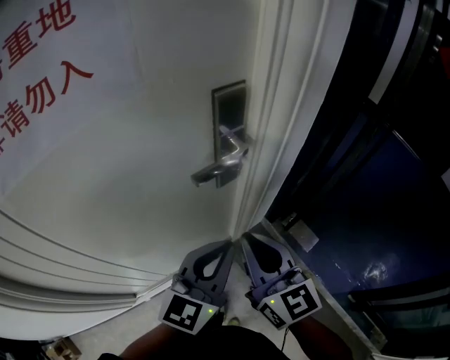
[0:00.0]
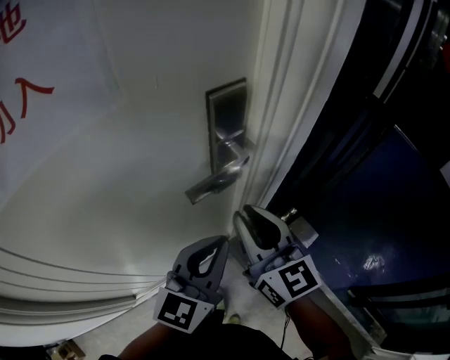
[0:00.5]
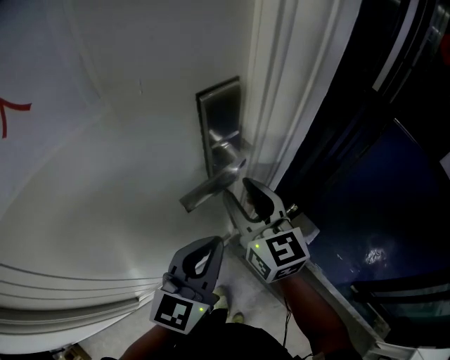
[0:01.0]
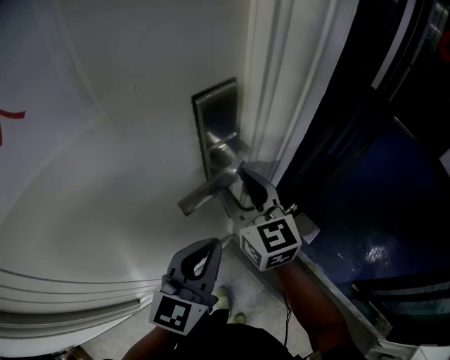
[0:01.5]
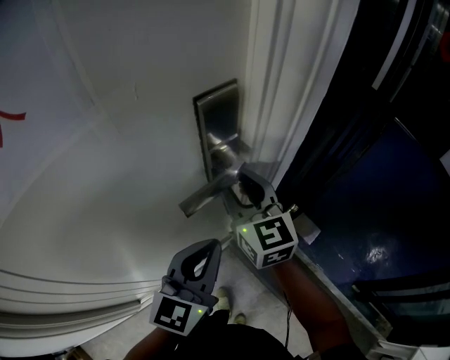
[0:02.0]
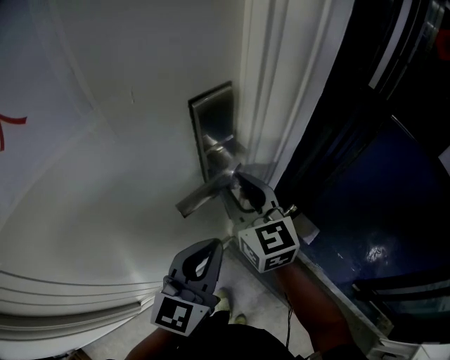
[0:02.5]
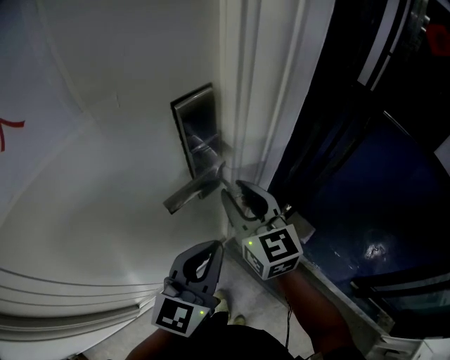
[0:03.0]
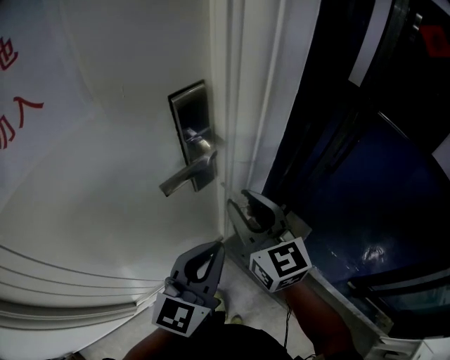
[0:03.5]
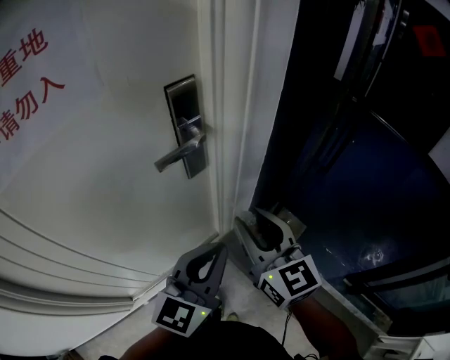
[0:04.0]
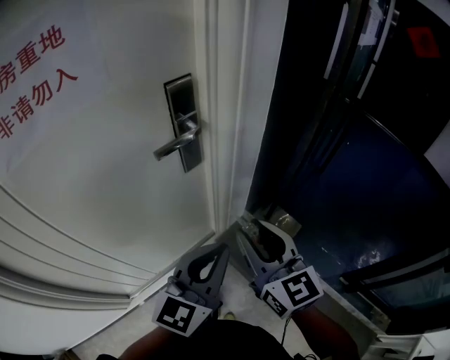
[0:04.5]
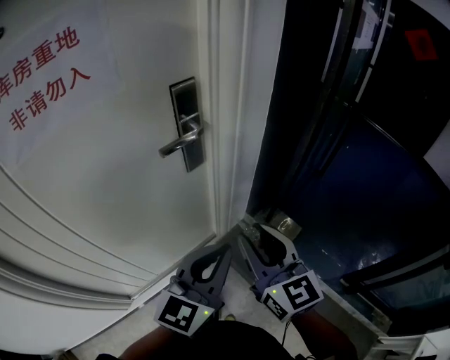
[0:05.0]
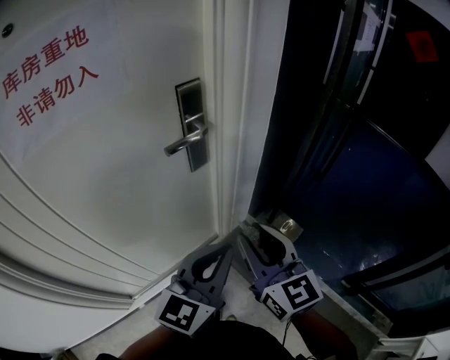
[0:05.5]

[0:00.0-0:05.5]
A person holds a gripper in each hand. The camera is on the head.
0:00.0 to 0:02.0: The left gripper heads forward, covering approximately 5 cm, while the right gripper goes roughly 20 cm forward, and opens.
0:02.0 to 0:03.5: The right gripper shifts about 10 cm backward and to the right; the left gripper shifts by about 5 cm.
0:03.5 to 0:05.5: The right gripper travels backward by about 20 cm, while the left gripper heads backward and to the right, covering roughly 15 cm.

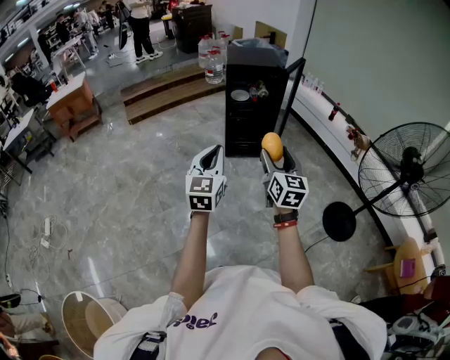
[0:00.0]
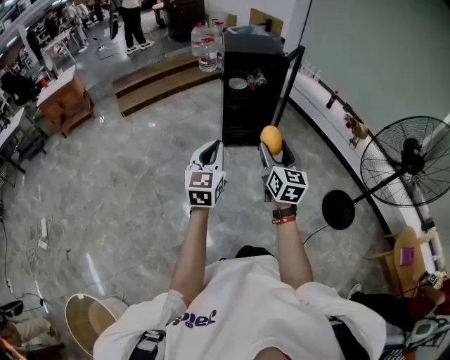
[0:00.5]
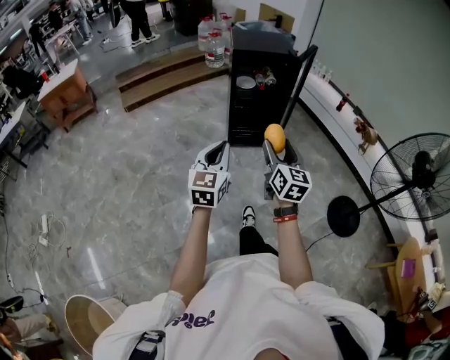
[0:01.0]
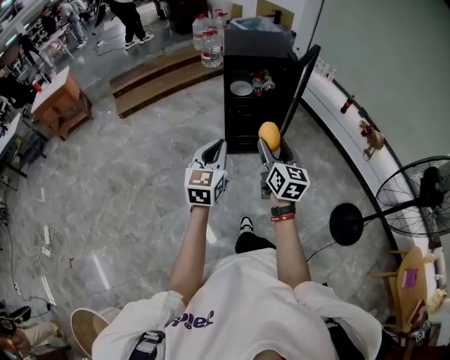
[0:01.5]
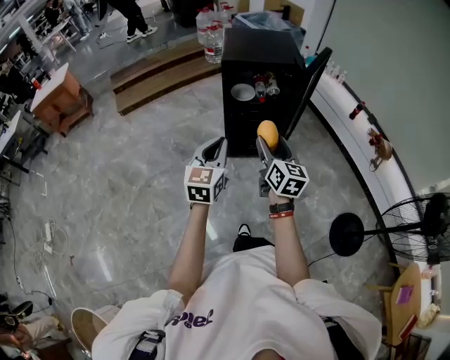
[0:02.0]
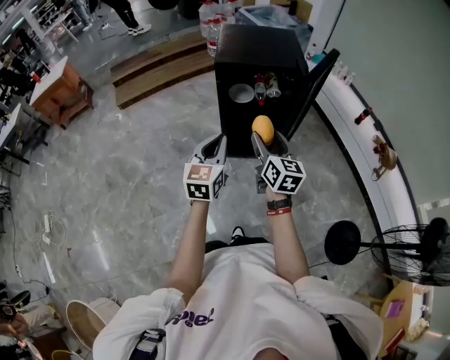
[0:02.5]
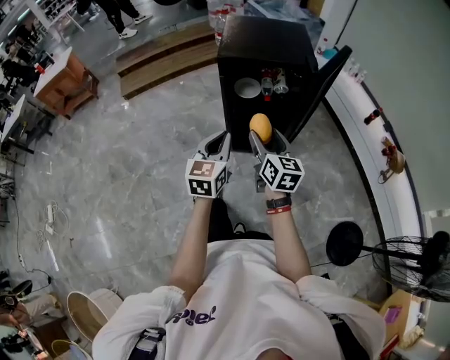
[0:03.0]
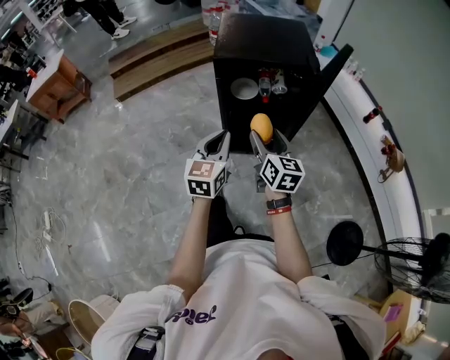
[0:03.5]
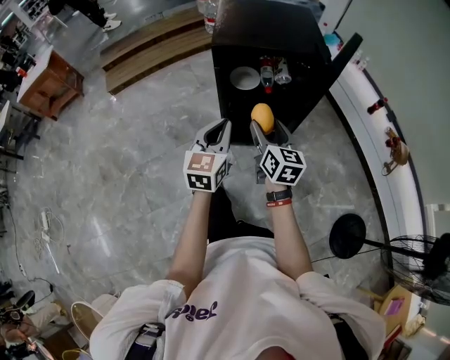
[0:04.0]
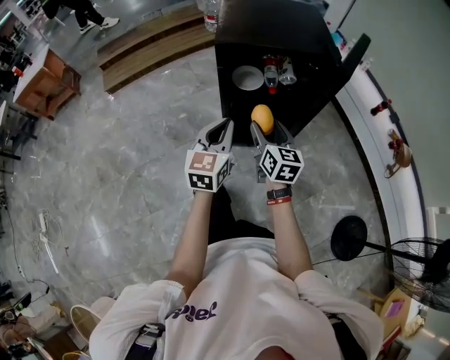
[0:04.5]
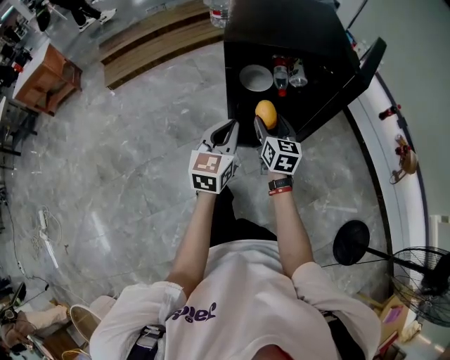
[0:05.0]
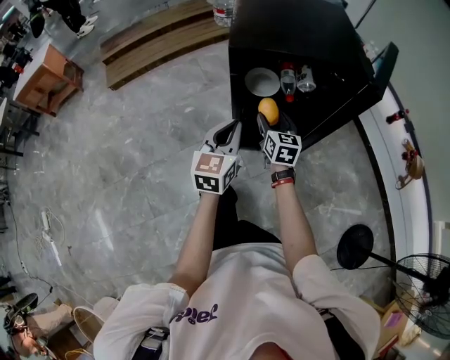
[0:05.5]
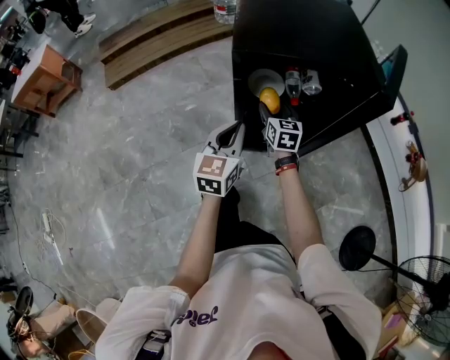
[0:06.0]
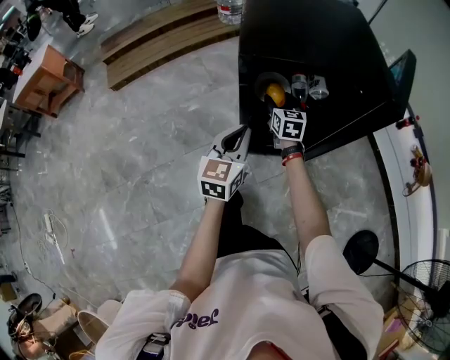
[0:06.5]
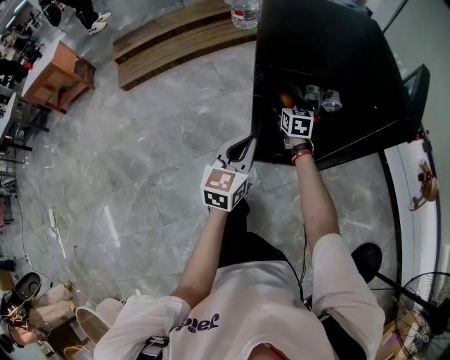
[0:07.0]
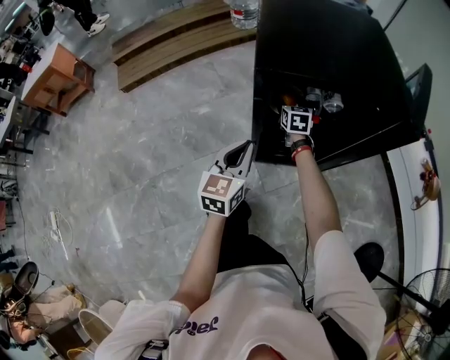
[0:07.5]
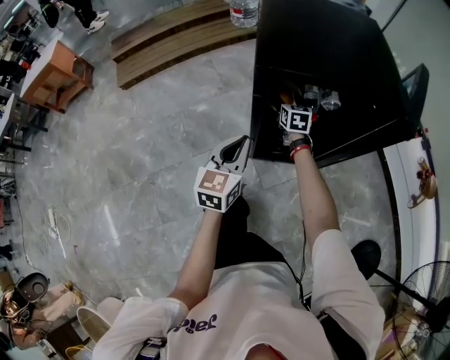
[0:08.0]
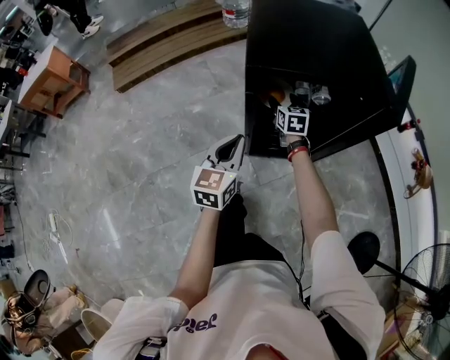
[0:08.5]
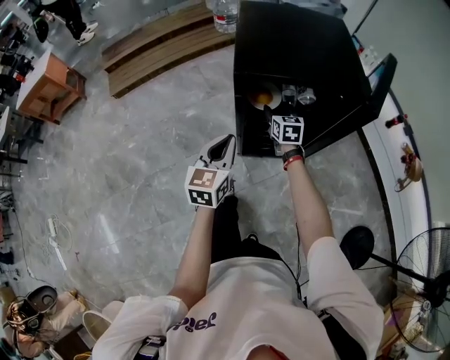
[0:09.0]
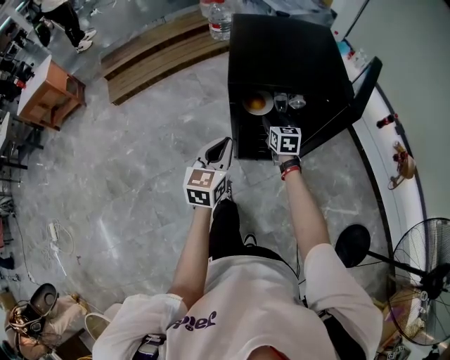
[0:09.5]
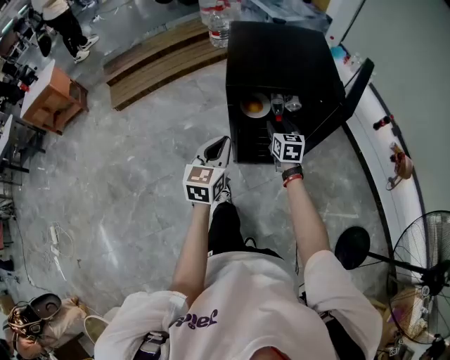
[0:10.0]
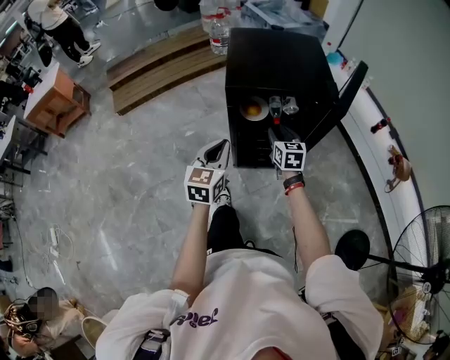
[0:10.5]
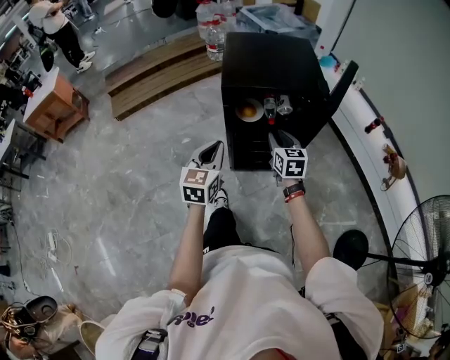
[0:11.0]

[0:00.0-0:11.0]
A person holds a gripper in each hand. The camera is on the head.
0:00.0 to 0:02.0: The pair of grippers is taken forward, some 40 cm.
0:02.0 to 0:03.5: The two grippers go roughly 20 cm forward and downward.
0:03.5 to 0:05.5: Both grippers move forward and downward, approximately 25 cm.
0:05.5 to 0:07.5: The left gripper moves forward and downward, approximately 10 cm, while the right gripper shifts approximately 20 cm forward and downward.
0:07.5 to 0:09.0: The right gripper goes about 15 cm backward and upward; the left gripper moves upward and backward, some 10 cm.
0:09.0 to 0:11.0: The left gripper is displaced upward and backward by roughly 15 cm. Meanwhile the right gripper heads backward and upward, covering roughly 25 cm, and closes up.

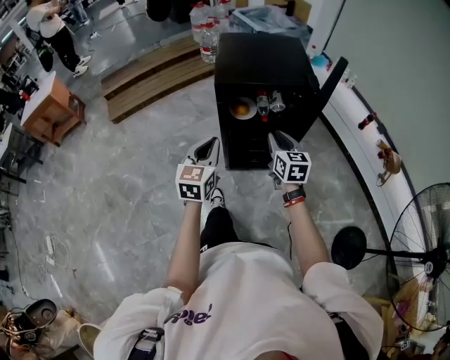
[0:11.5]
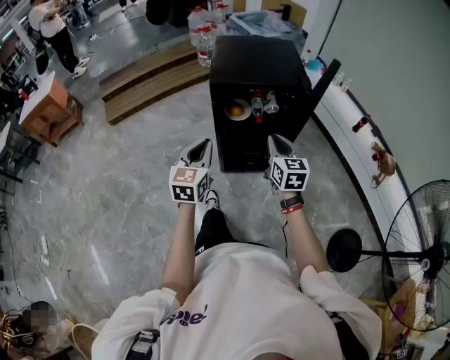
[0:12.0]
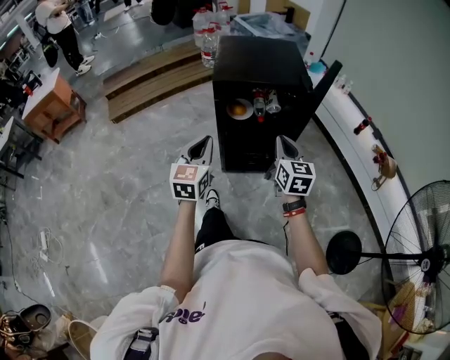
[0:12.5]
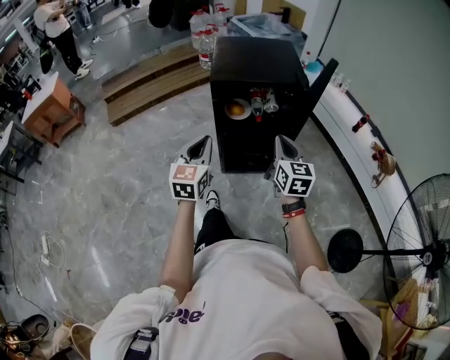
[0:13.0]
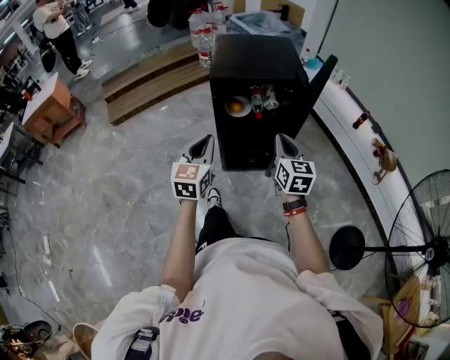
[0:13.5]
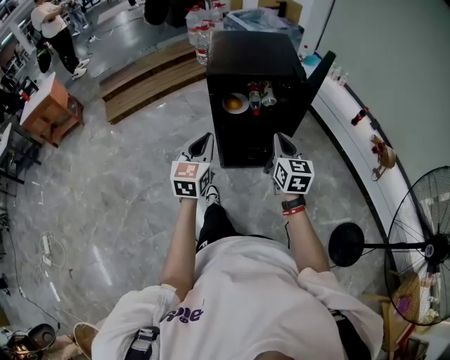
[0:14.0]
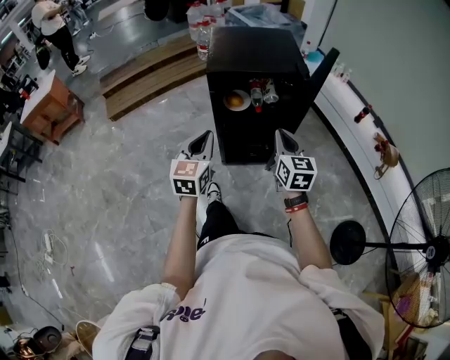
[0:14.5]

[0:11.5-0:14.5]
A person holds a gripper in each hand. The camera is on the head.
0:11.5 to 0:13.0: The left gripper shifts approximately 5 cm backward, while the right gripper travels backward and upward by roughly 10 cm.
0:13.0 to 0:14.5: The grippers move only a little.

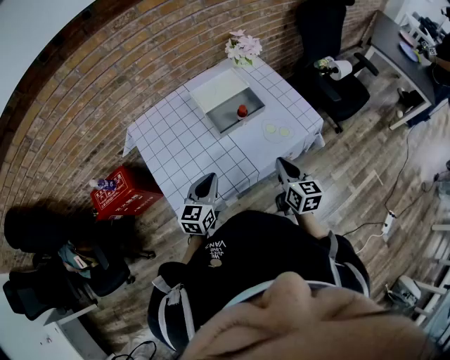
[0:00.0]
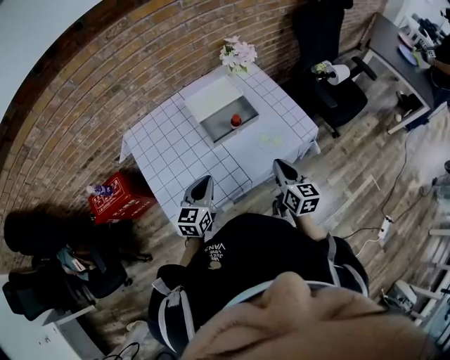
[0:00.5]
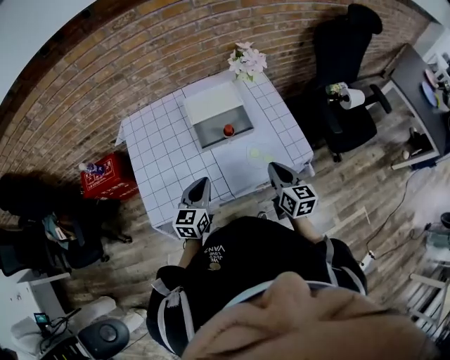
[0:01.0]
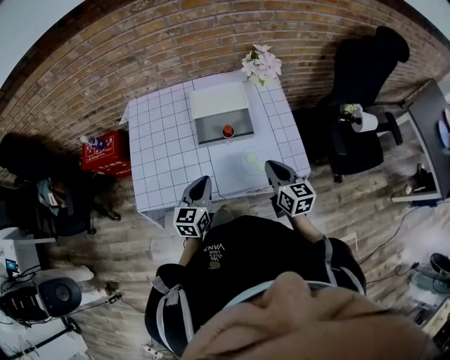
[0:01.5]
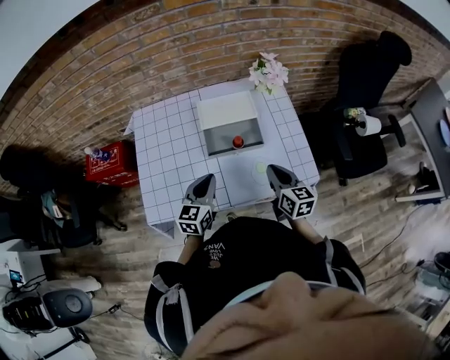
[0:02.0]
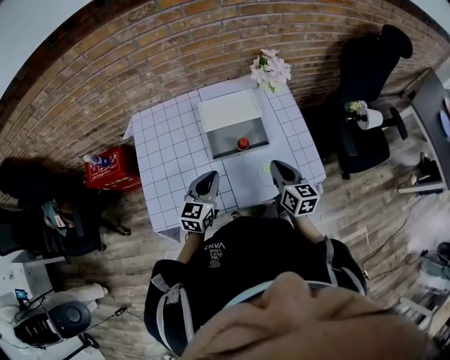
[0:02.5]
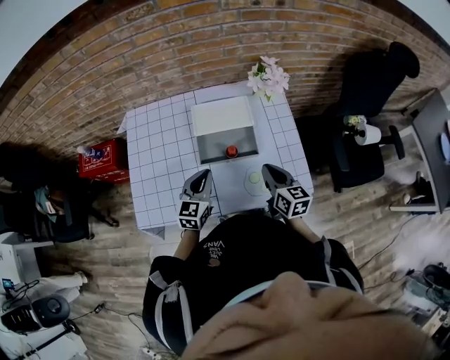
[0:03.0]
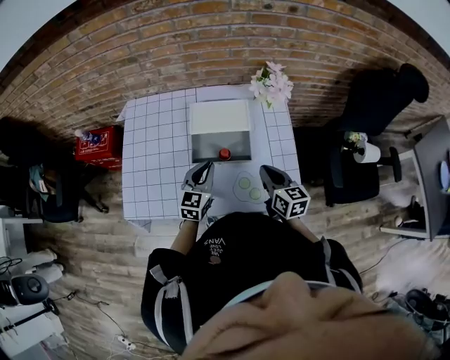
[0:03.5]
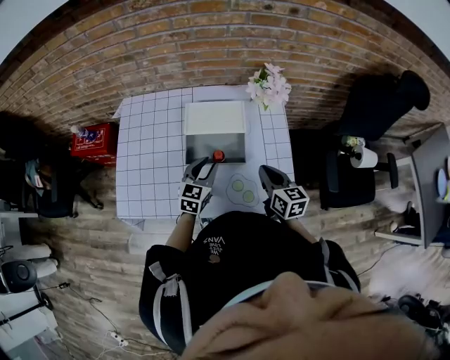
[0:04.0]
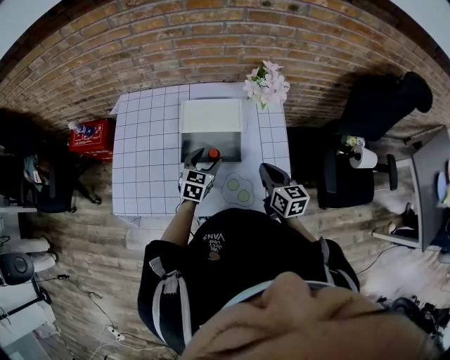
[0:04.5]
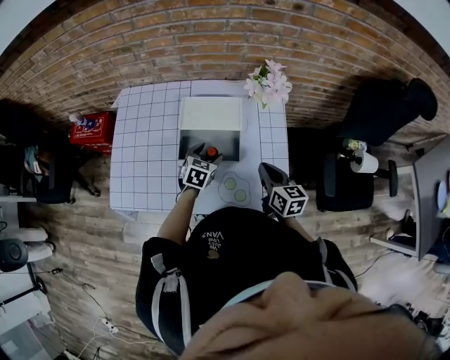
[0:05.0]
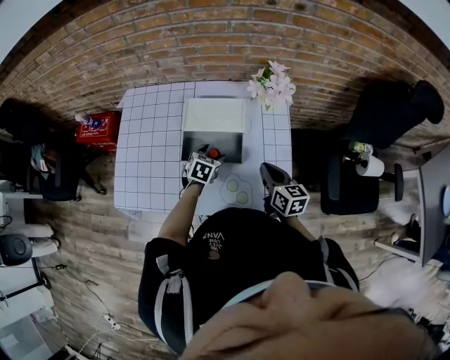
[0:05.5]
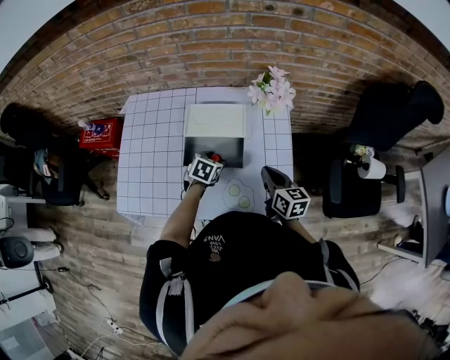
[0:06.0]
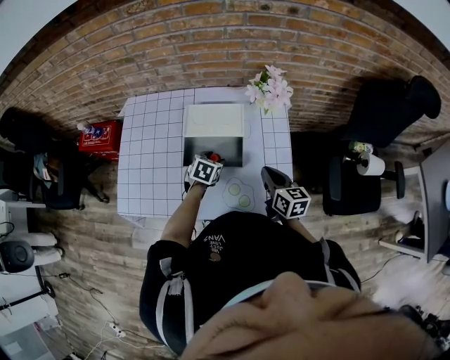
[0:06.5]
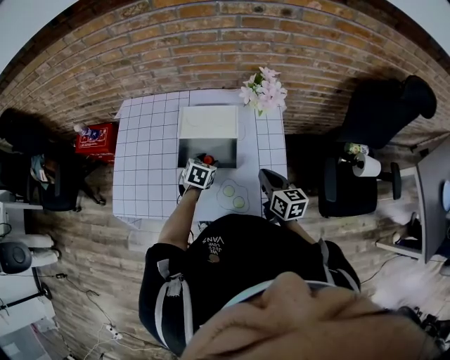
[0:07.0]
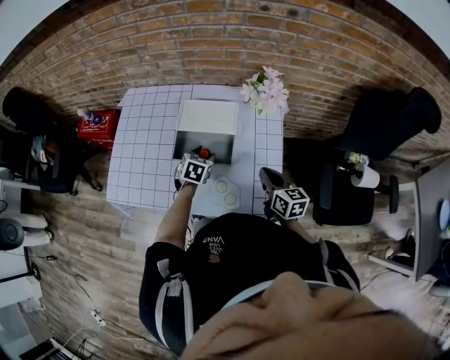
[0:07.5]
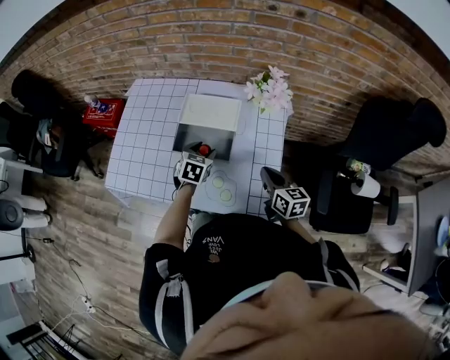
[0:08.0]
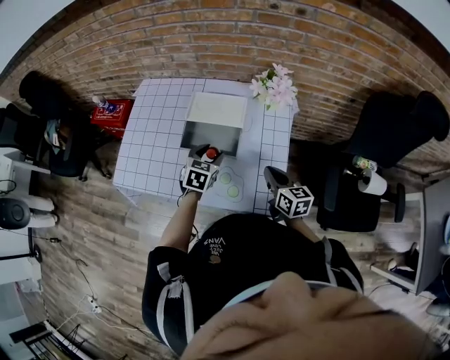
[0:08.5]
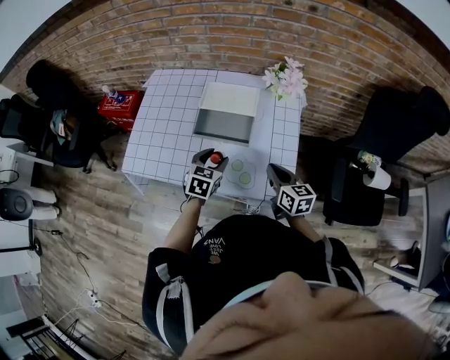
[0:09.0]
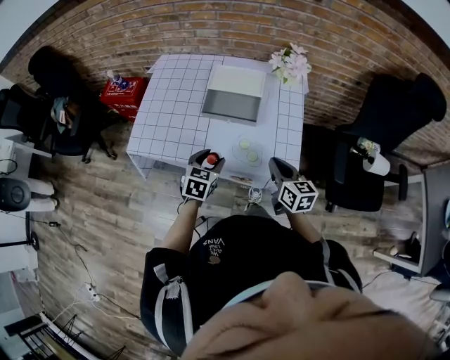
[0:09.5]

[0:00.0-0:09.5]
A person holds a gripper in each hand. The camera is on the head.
0:00.0 to 0:02.0: The left gripper ends up some 15 cm from where it was, and swivels approximately 20 degrees. The right gripper ends up about 15 cm from where it was, and swivels some 20 degrees.
0:02.0 to 0:04.0: The right gripper shifts about 10 cm forward and to the right. Meanwhile the left gripper goes approximately 15 cm forward, to the right and downward.
0:04.0 to 0:05.5: The left gripper moves downward and forward, about 10 cm, rotates roughly 30 degrees, and opens.
0:05.5 to 0:07.5: The grippers stay close to where they were, moving slightly.
0:07.5 to 0:09.5: The left gripper shifts about 20 cm backward; the right gripper heads backward and to the left, covering about 15 cm.
